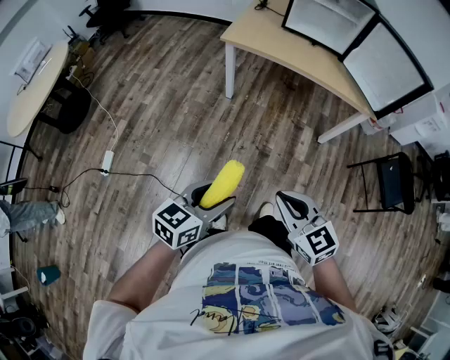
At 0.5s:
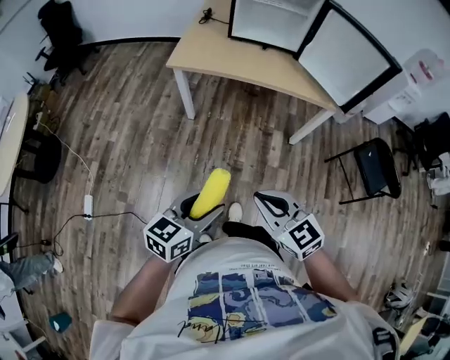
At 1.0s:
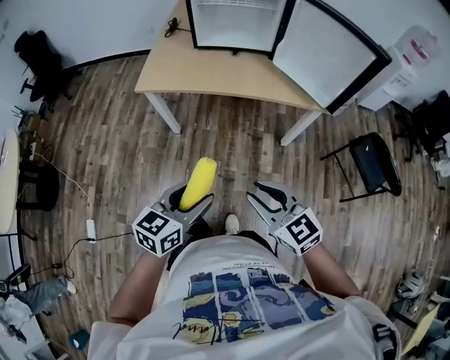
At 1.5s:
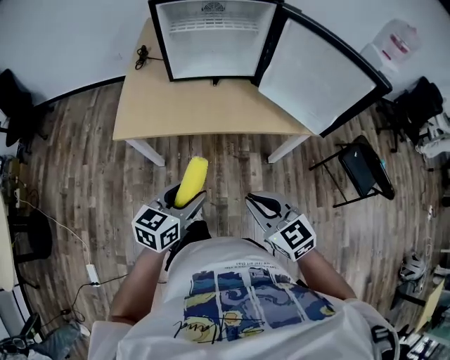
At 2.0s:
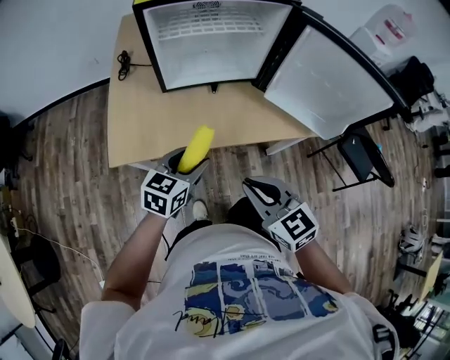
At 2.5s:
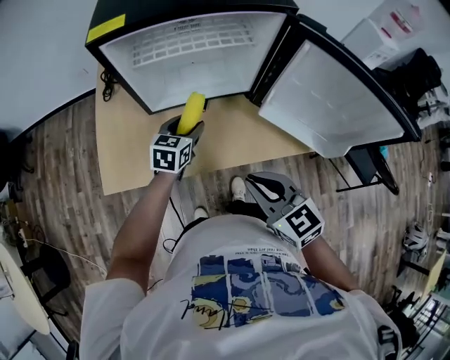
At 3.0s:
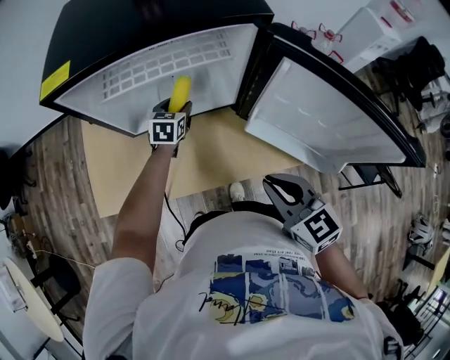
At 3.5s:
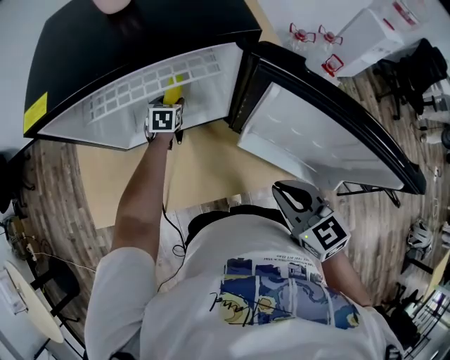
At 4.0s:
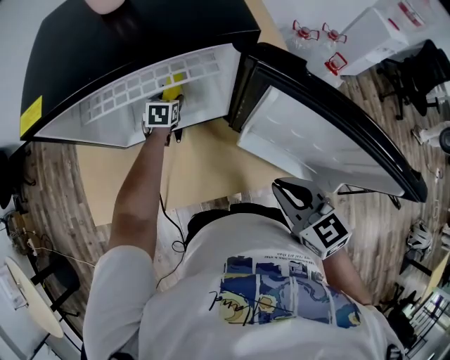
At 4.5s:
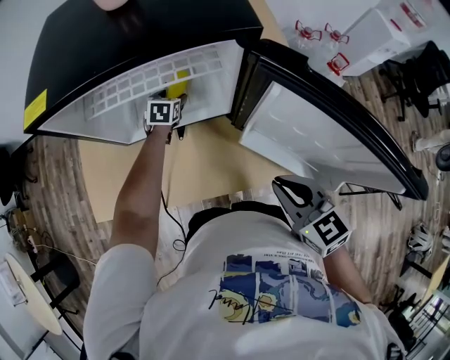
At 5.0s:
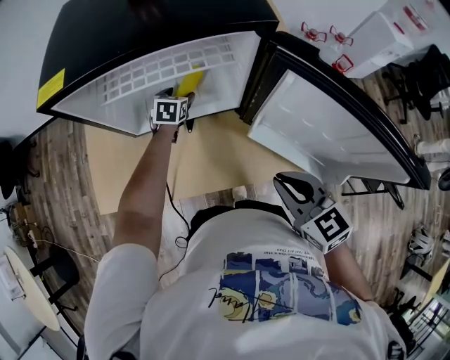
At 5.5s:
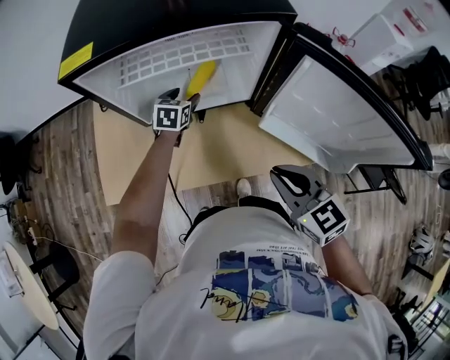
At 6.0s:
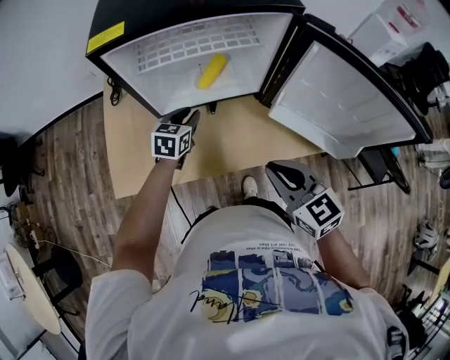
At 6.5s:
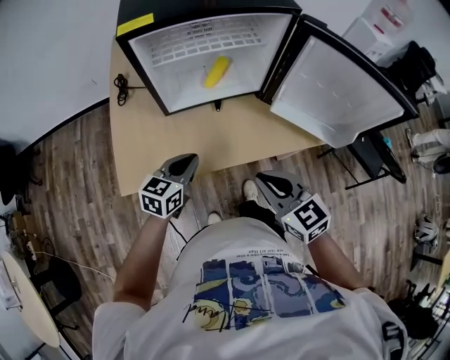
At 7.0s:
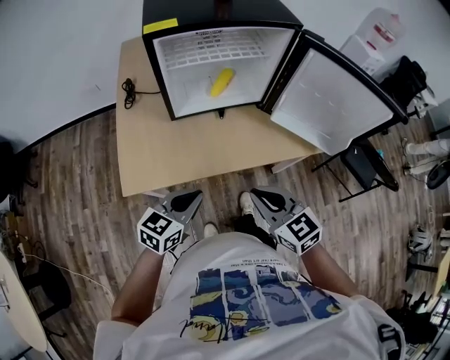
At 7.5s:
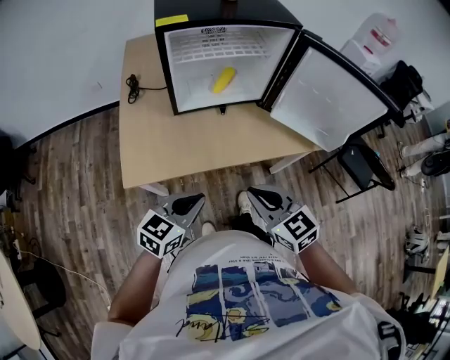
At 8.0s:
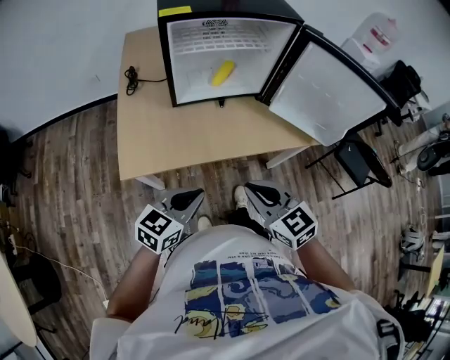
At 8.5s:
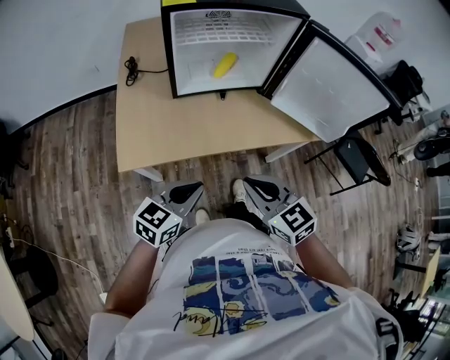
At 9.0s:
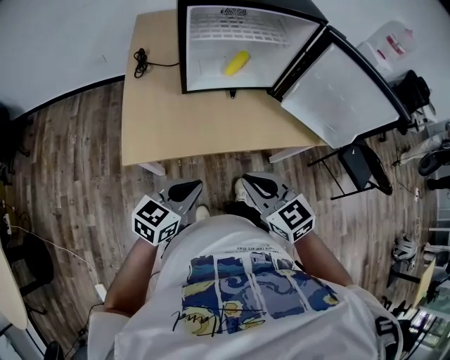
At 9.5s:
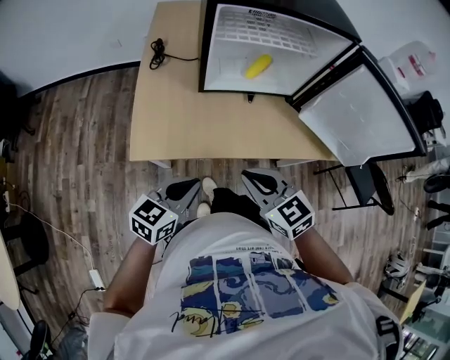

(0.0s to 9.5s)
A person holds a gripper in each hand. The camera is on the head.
0.0s - 2.0s: The two grippers travel together, forward, some 60 cm. The right gripper swivels approximately 30 degrees. Meanwhile the left gripper rotates about 20 degrees.
2.0s - 4.0s: The right gripper is displaced to the right and forward by about 30 cm, while the left gripper goes about 40 cm forward, and rotates approximately 30 degrees.
4.0s - 5.5s: The left gripper heads backward and upward, covering roughly 10 cm; the right gripper moves to the left, approximately 5 cm.
5.5s - 7.5s: The left gripper travels backward by some 40 cm, rotates approximately 30 degrees, and closes up, while the right gripper is displaced backward and to the left by approximately 25 cm.
7.5s - 9.5s: The two grippers go roughly 5 cm to the left.

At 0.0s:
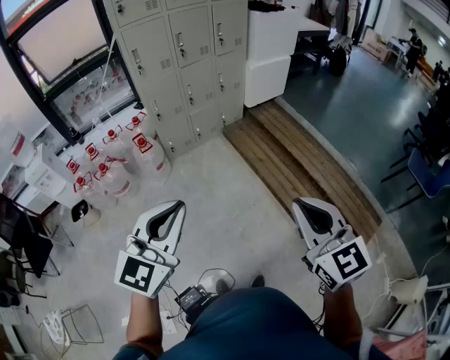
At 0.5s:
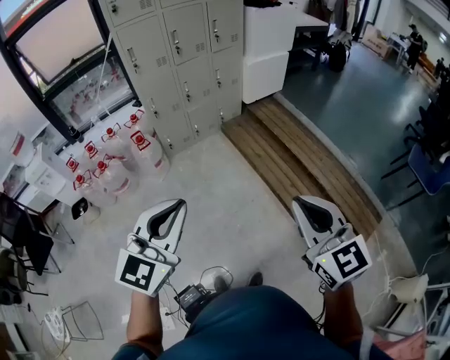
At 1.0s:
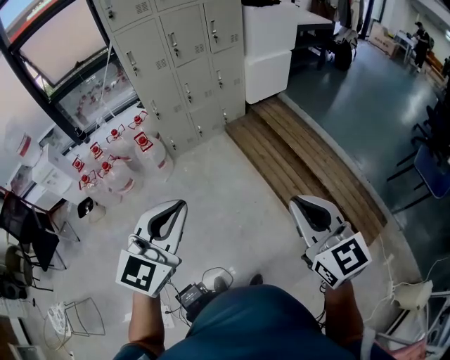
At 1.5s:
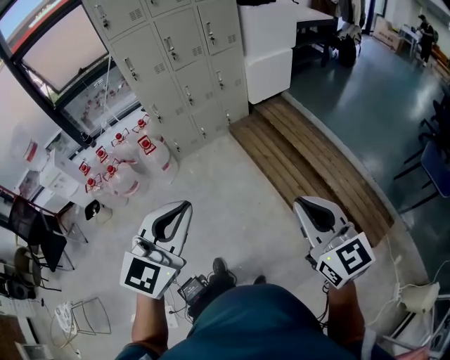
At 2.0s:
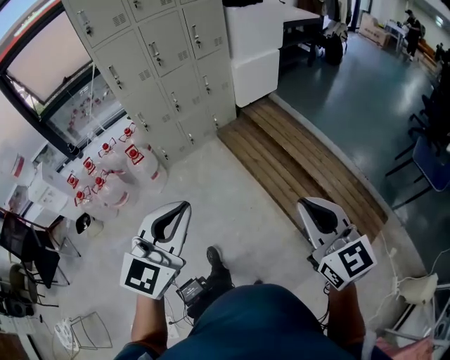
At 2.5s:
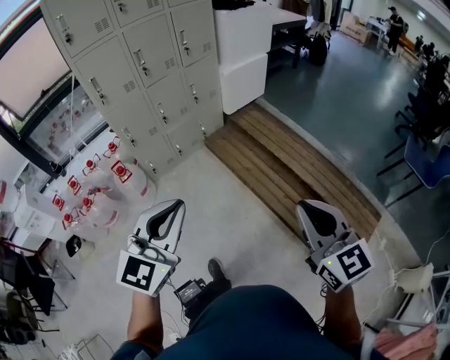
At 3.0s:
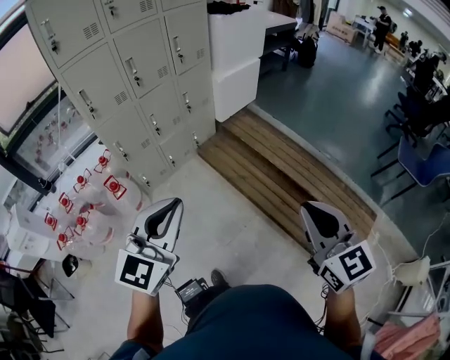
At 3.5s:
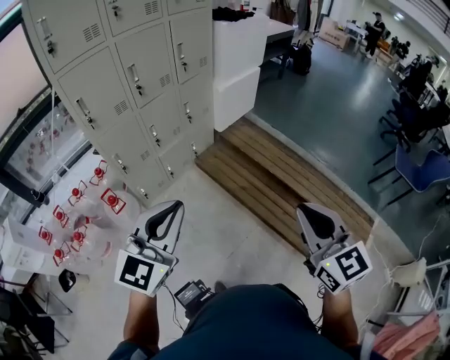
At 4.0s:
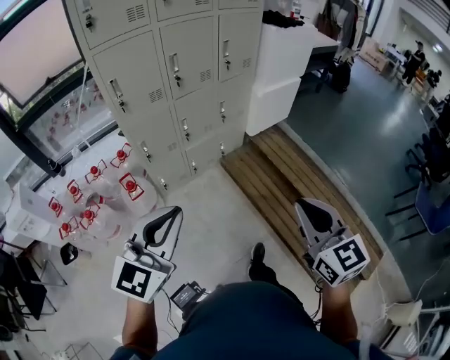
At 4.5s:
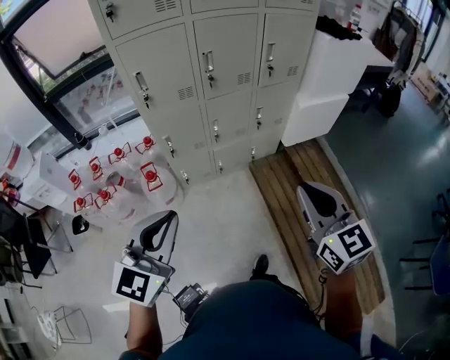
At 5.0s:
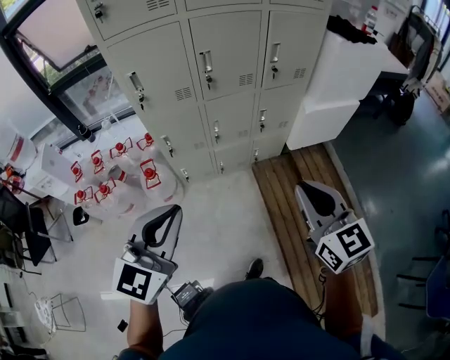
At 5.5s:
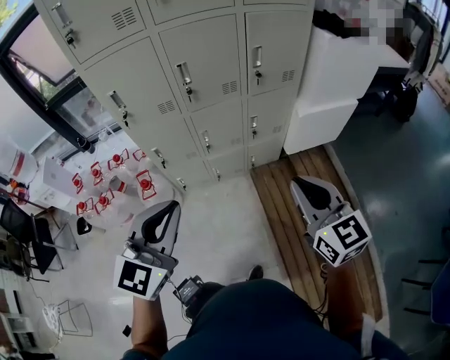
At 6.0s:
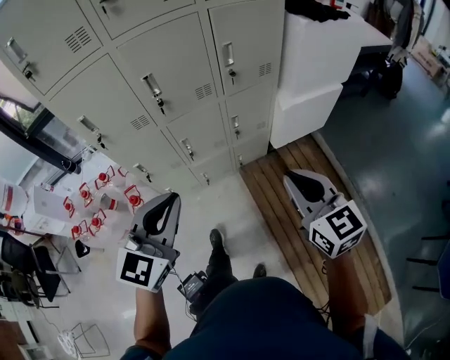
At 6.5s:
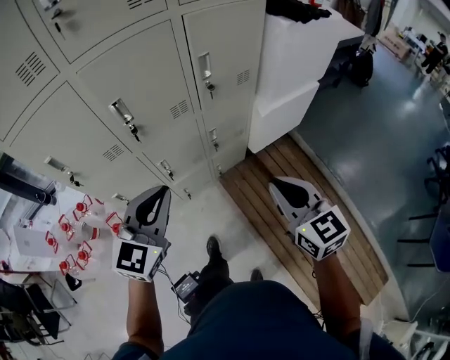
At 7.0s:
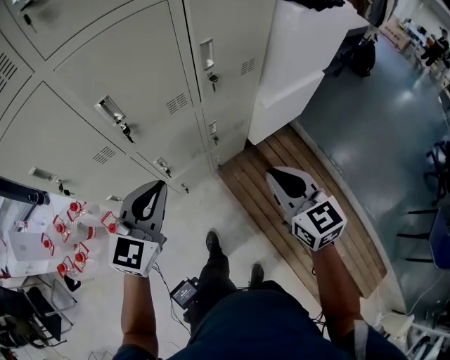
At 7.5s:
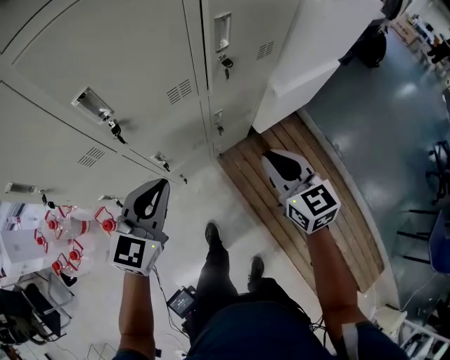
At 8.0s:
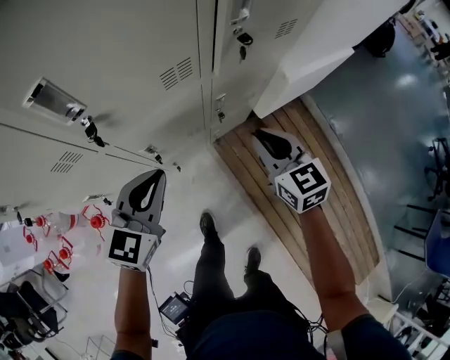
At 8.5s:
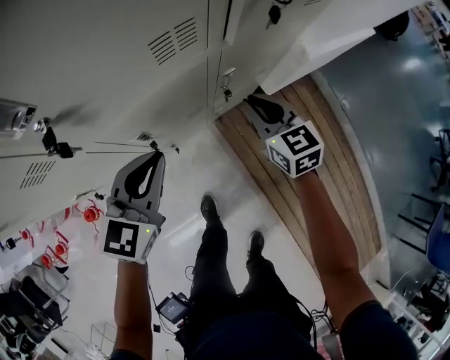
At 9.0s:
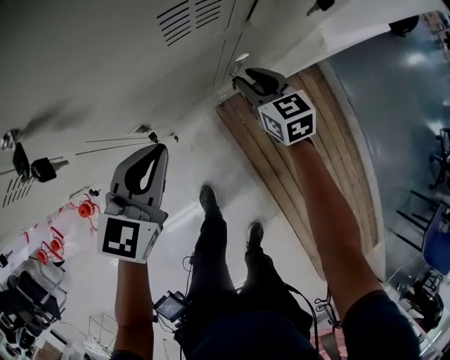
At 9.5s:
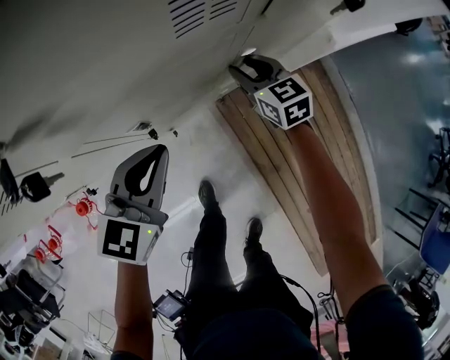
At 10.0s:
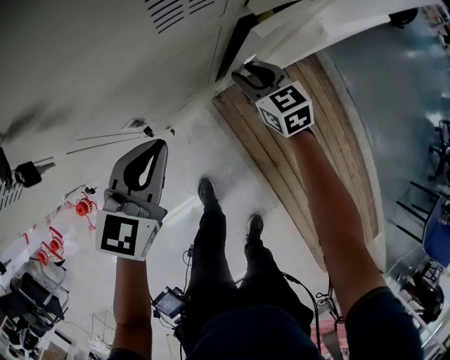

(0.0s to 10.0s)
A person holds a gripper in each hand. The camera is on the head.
0.0s - 2.0s: The left gripper travels to the right and forward by approximately 20 cm; the right gripper is displaced to the right by approximately 15 cm.
2.0s - 4.0s: The two grippers travel together, forward and to the left, roughly 50 cm.
4.0s - 6.0s: Both grippers are carried forward and to the right, roughly 50 cm.
6.0s - 8.0s: Both grippers travel together forward and downward, some 50 cm.
8.0s - 10.0s: The right gripper heads downward and forward, covering approximately 25 cm, and opens up. The left gripper shifts some 15 cm downward and forward.

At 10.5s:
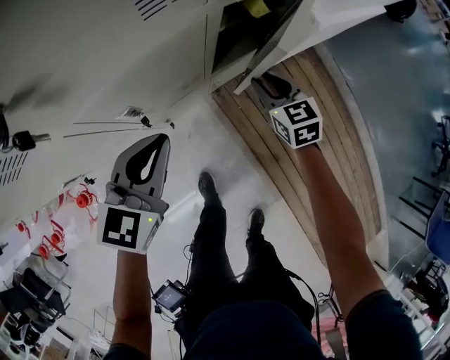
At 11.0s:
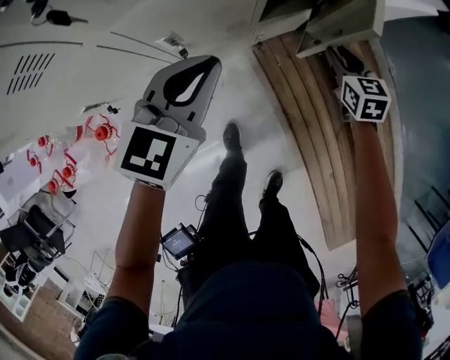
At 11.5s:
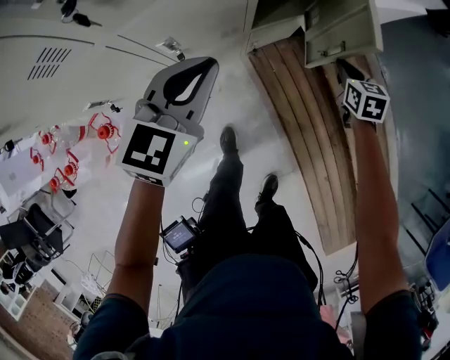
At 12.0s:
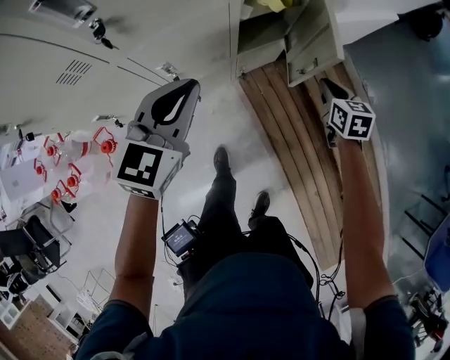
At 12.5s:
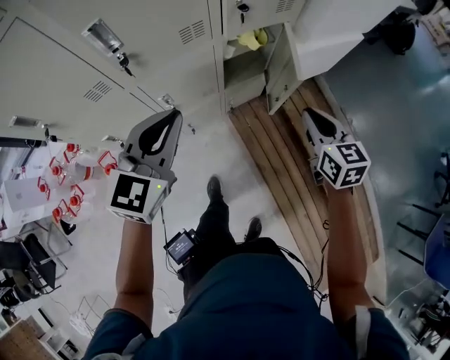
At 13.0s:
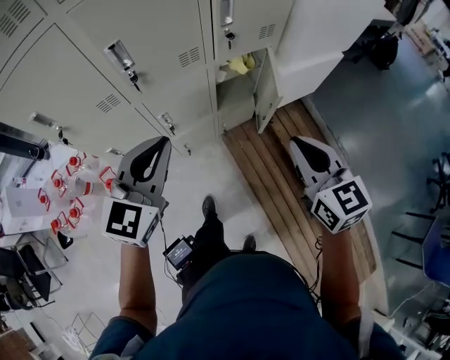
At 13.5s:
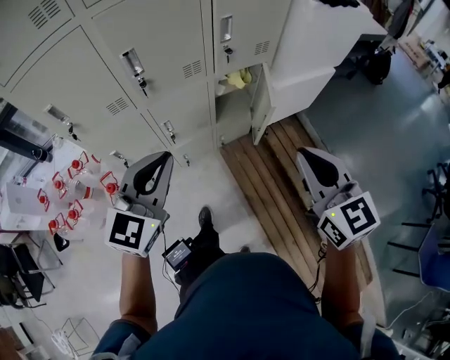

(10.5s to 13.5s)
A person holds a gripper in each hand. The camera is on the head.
10.5s - 12.0s: The left gripper goes some 15 cm upward. Meanwhile the right gripper travels to the right, upward and backward by some 20 cm.
12.0s - 13.5s: The left gripper shifts some 35 cm upward and backward, while the right gripper shifts approximately 50 cm upward and backward, and rotates some 40 degrees.

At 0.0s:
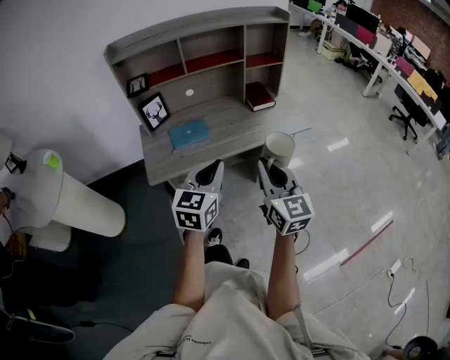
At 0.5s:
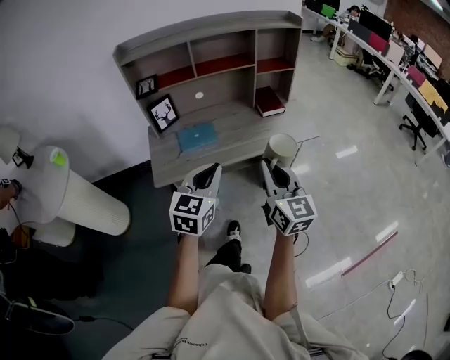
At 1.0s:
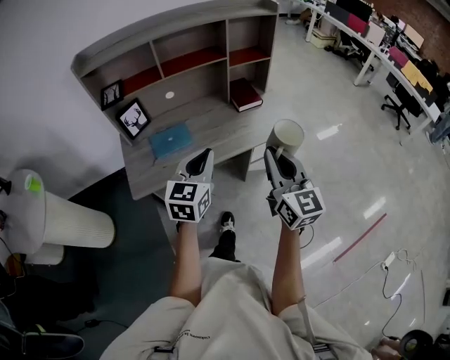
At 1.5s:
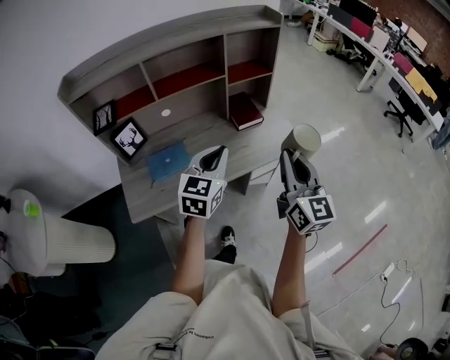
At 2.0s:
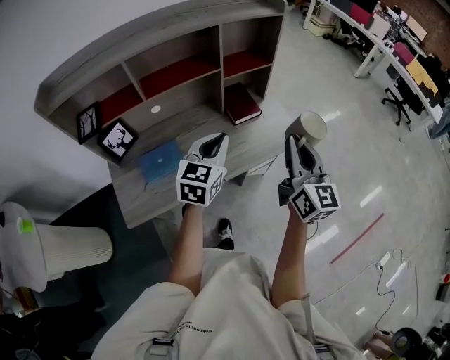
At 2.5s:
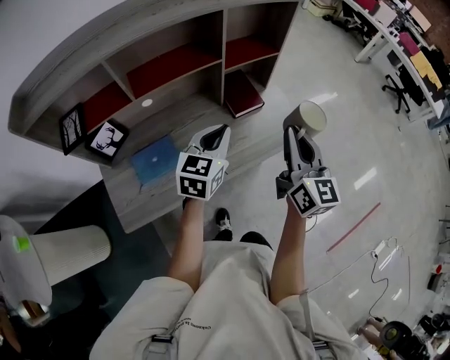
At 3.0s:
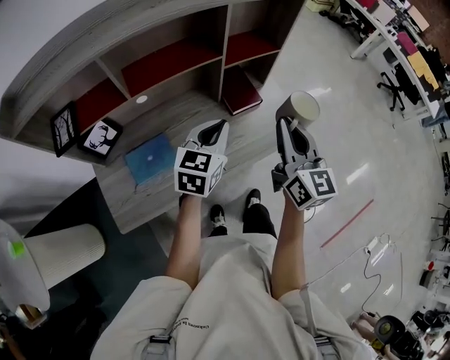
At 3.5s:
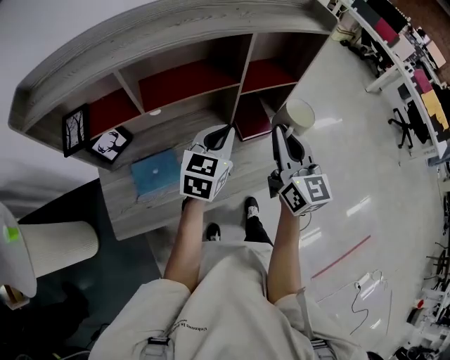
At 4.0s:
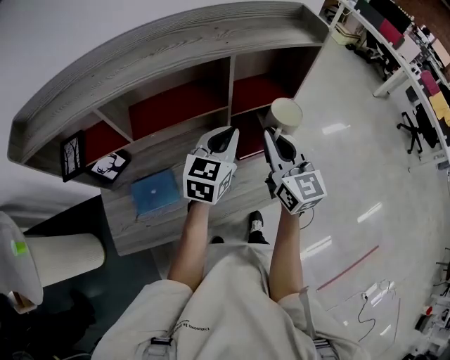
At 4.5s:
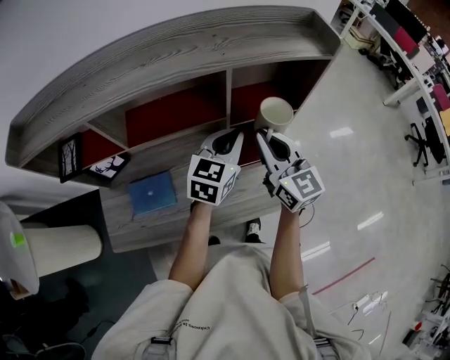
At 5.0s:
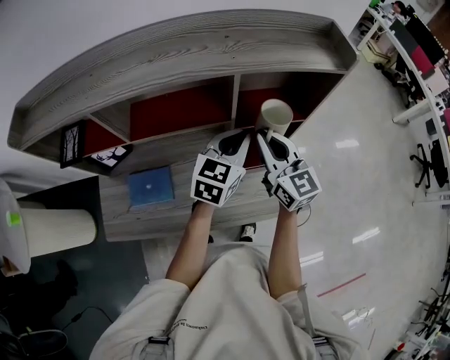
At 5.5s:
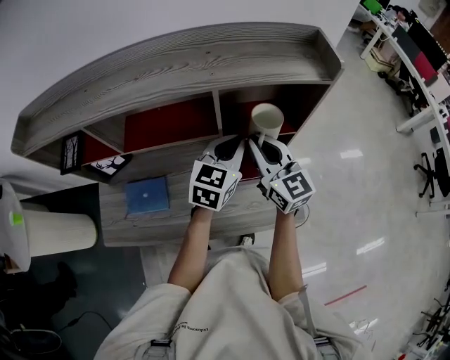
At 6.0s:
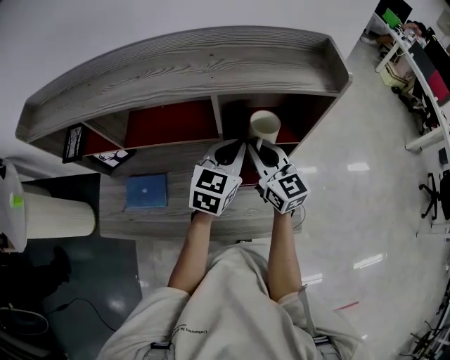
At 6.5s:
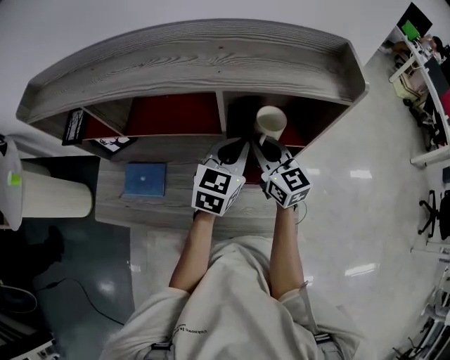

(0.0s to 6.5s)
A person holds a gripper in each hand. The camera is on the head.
0.0s - 2.0s: The right gripper travels forward and to the right by some 30 cm; the left gripper is displaced forward by roughly 30 cm.
2.0s - 4.5s: The grippers both shift forward by about 30 cm. The right gripper rotates some 30 degrees.
4.5s - 6.5s: The right gripper heads forward and downward, covering about 10 cm. Meanwhile the left gripper changes place by approximately 5 cm.
